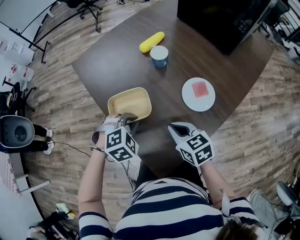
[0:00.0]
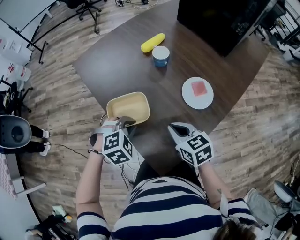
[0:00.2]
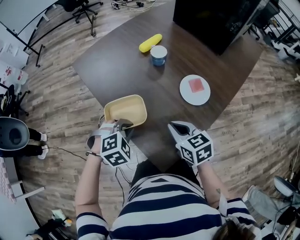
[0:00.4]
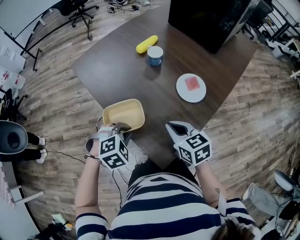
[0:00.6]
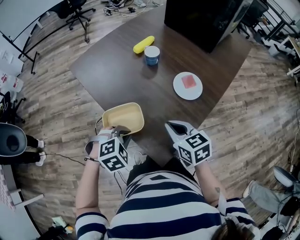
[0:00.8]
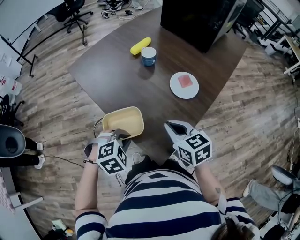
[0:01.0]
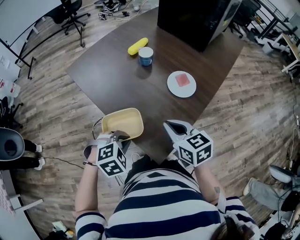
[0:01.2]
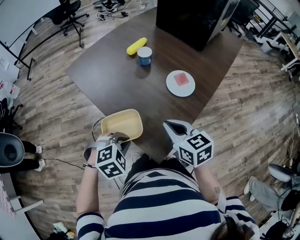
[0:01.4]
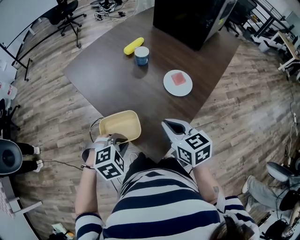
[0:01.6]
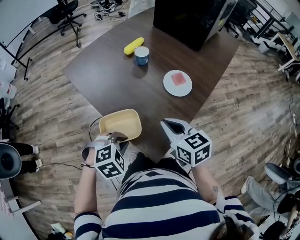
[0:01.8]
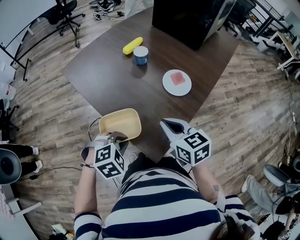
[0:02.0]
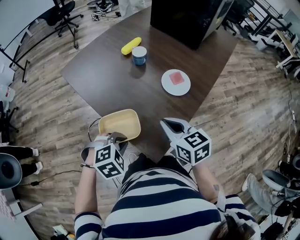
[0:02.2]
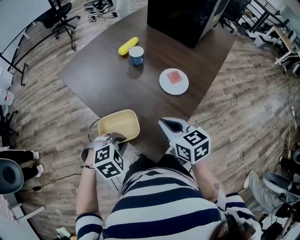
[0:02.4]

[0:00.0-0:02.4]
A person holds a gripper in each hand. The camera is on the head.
0:00.0 to 0:01.2: The right gripper heads backward and upward, covering roughly 15 cm. The left gripper heads backward, covering some 15 cm.
0:01.2 to 0:02.4: Both grippers stay put.

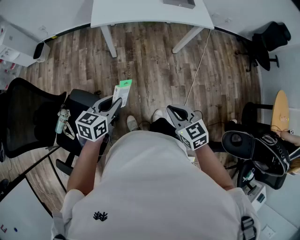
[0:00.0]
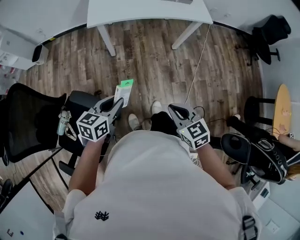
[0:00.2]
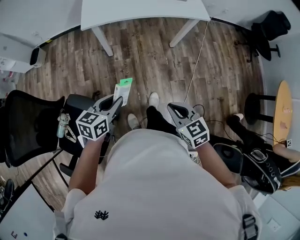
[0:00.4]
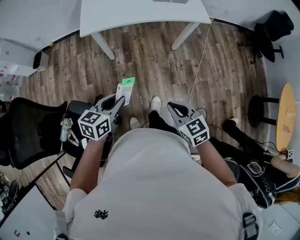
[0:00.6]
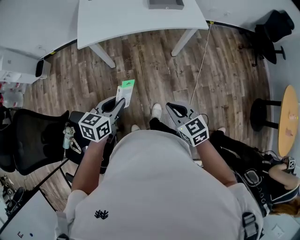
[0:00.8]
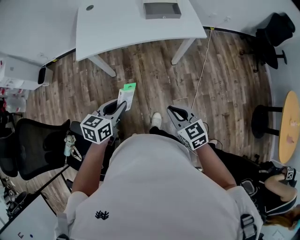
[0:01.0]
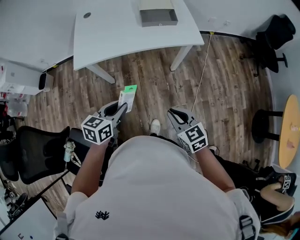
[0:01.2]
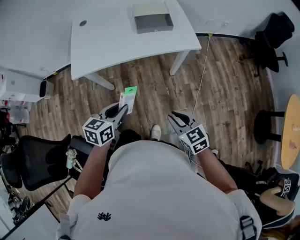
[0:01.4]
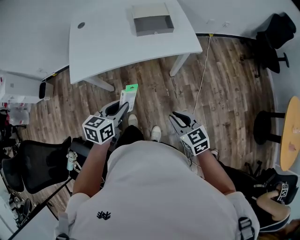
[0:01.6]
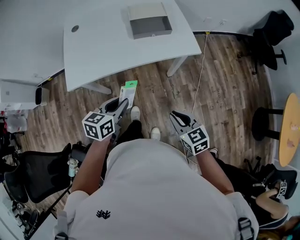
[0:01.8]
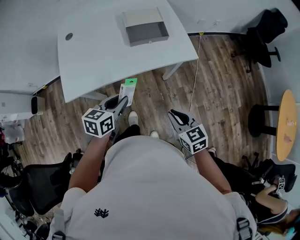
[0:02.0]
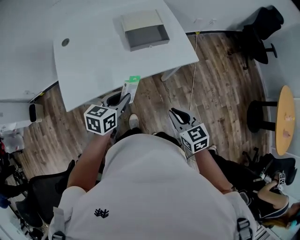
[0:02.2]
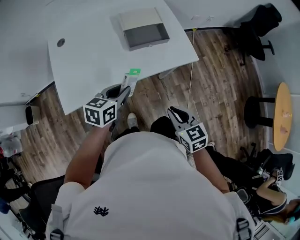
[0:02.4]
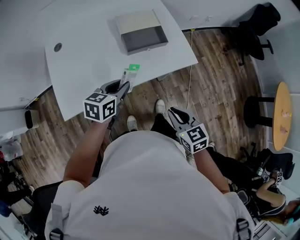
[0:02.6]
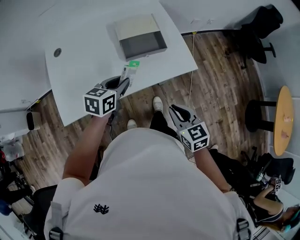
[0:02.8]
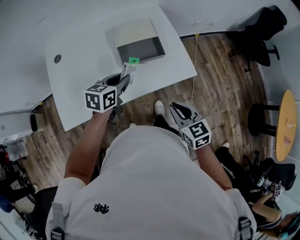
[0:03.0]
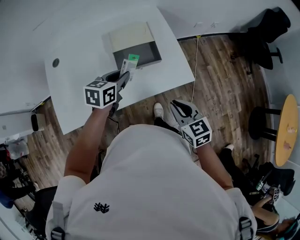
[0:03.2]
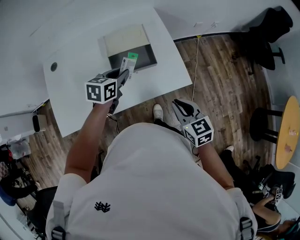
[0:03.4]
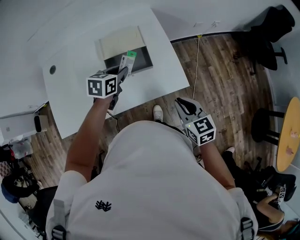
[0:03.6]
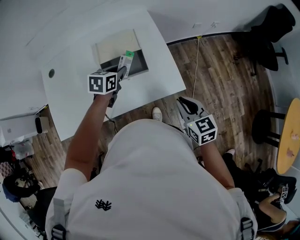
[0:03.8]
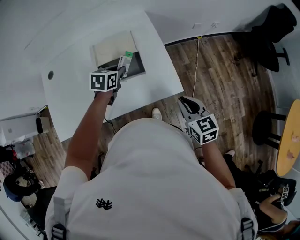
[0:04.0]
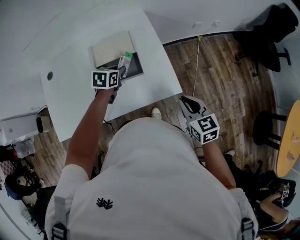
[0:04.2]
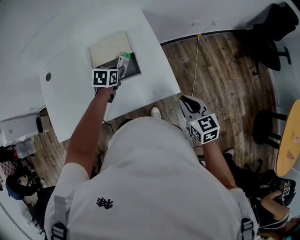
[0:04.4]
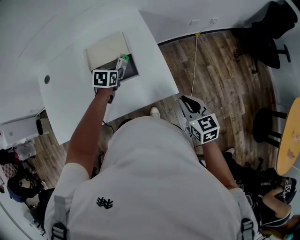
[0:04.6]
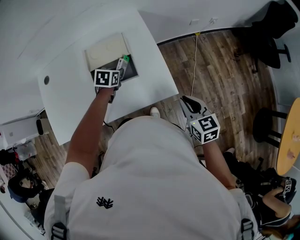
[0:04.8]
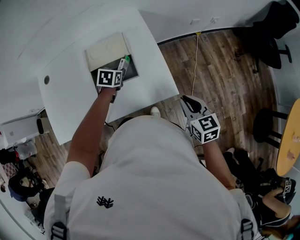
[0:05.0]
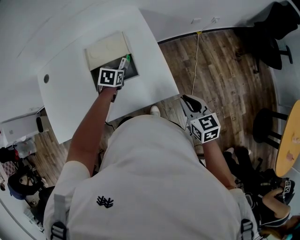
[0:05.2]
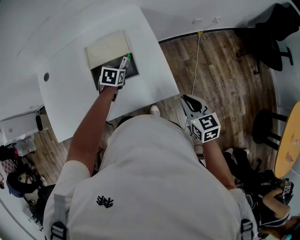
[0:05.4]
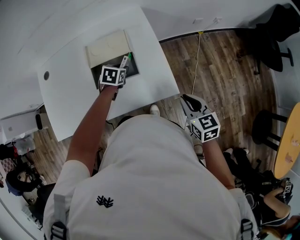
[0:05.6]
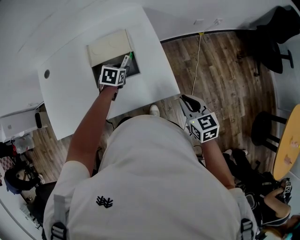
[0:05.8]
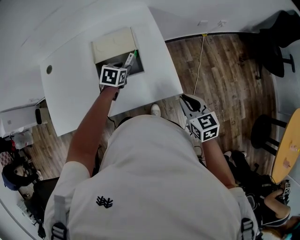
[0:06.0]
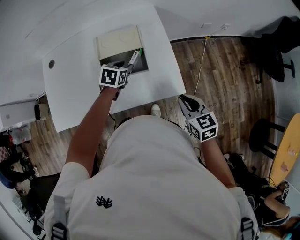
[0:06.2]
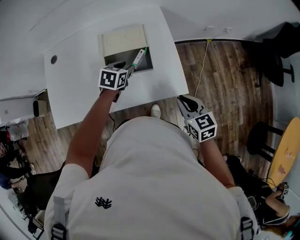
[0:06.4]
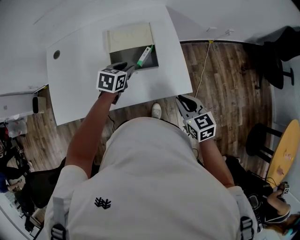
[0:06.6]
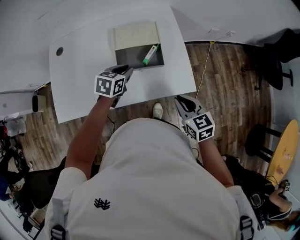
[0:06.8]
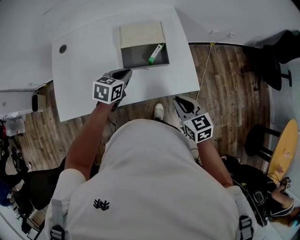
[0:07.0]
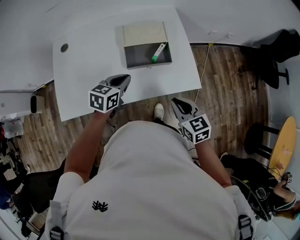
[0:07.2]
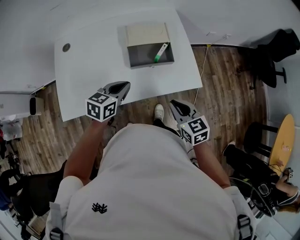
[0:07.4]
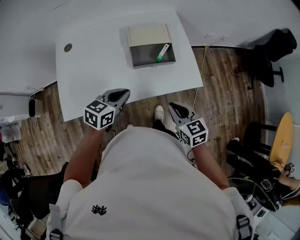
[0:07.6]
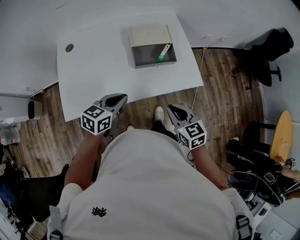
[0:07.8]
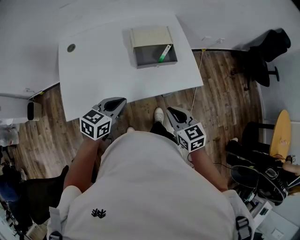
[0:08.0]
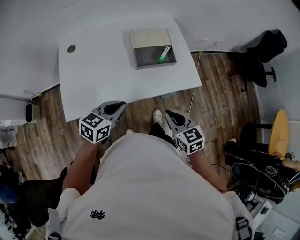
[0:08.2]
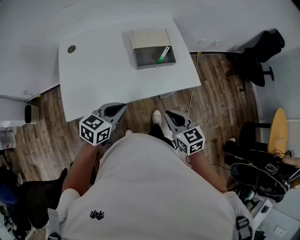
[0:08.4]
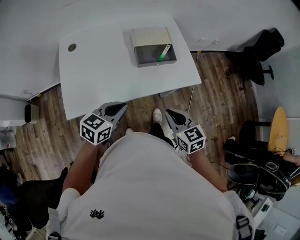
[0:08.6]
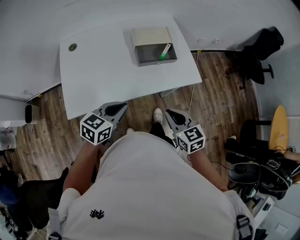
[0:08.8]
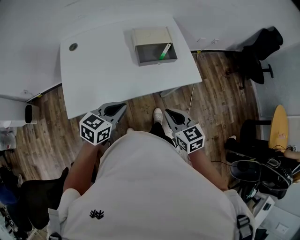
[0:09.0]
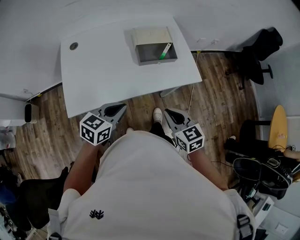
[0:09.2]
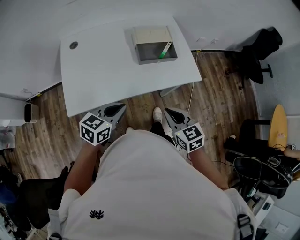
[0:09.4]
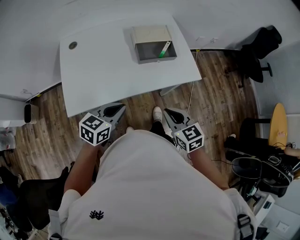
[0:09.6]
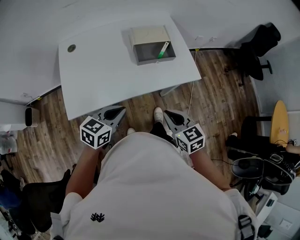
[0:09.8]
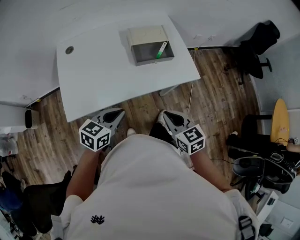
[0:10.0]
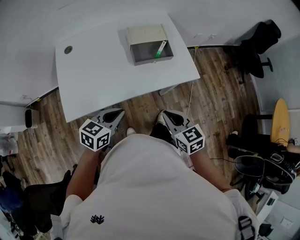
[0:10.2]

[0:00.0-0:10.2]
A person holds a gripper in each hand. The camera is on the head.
0:00.0 to 0:01.4: The two grippers go roughly 25 cm forward and to the right.
0:01.4 to 0:03.0: The grippers both shift forward by approximately 30 cm.
0:03.0 to 0:04.4: The right gripper moves to the right and forward, about 20 cm. Meanwhile the left gripper moves forward, downward and to the right, about 20 cm, and turns by approximately 20 degrees.
0:04.4 to 0:05.8: The grippers stay close to where they were, moving slightly.
0:05.8 to 0:07.2: The left gripper heads backward, to the left and upward, covering approximately 20 cm, rotates roughly 30 degrees, and closes; the right gripper goes about 20 cm to the left.
0:07.2 to 0:08.8: The left gripper moves backward, approximately 20 cm. Meanwhile the right gripper goes about 15 cm backward and to the left.
0:08.8 to 0:10.2: The grippers make only small movements.

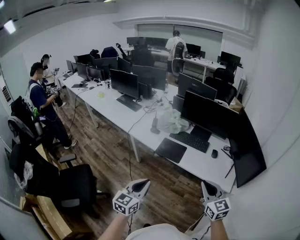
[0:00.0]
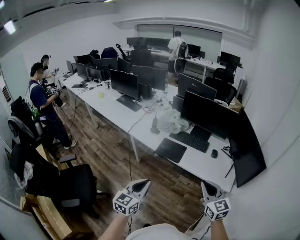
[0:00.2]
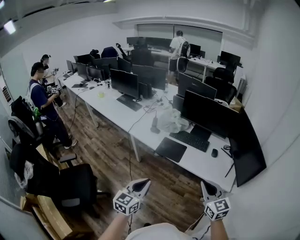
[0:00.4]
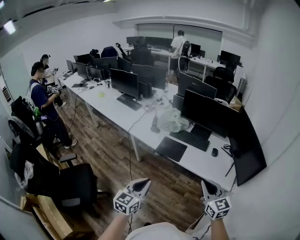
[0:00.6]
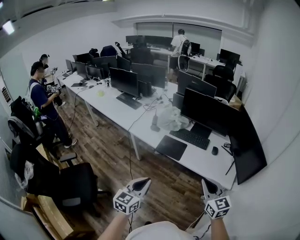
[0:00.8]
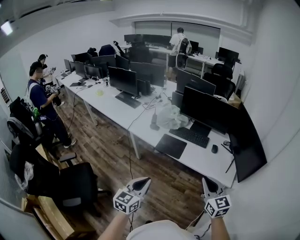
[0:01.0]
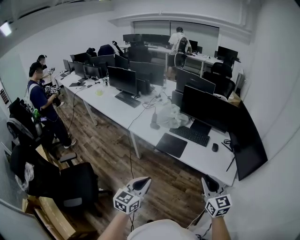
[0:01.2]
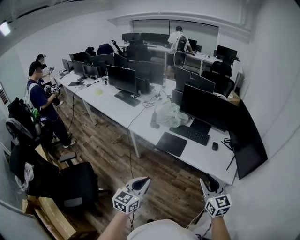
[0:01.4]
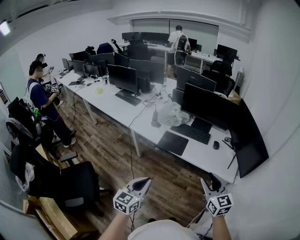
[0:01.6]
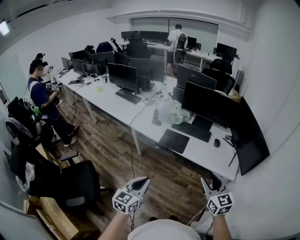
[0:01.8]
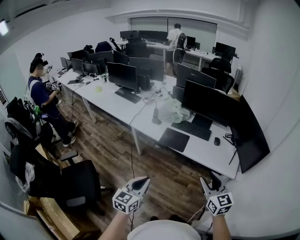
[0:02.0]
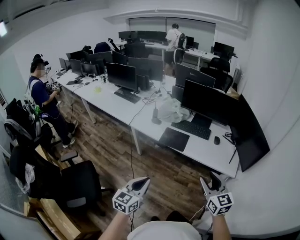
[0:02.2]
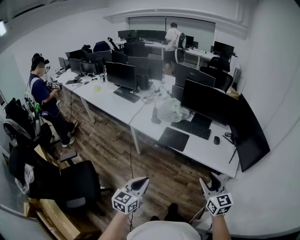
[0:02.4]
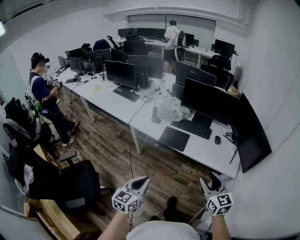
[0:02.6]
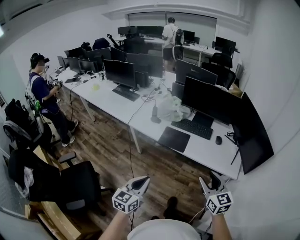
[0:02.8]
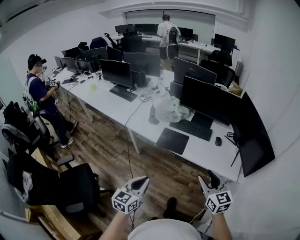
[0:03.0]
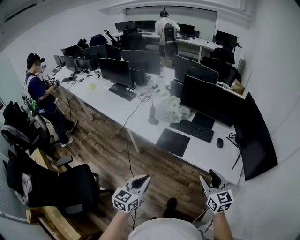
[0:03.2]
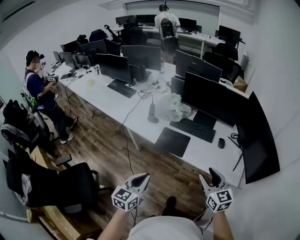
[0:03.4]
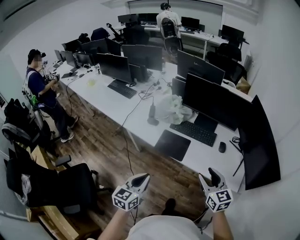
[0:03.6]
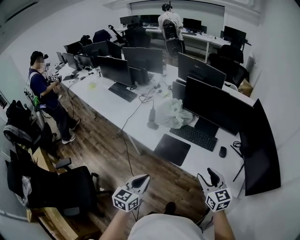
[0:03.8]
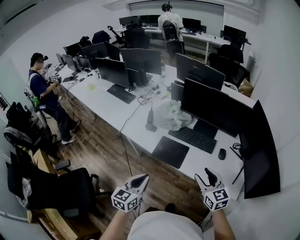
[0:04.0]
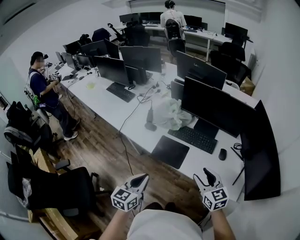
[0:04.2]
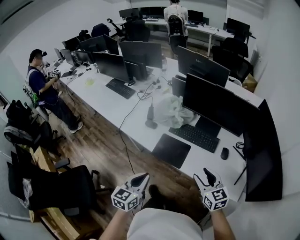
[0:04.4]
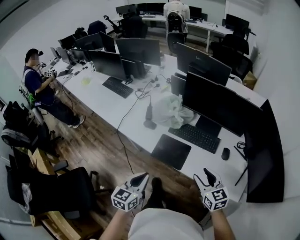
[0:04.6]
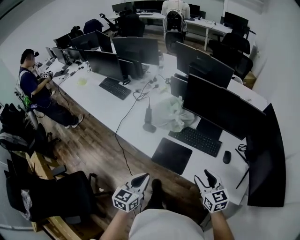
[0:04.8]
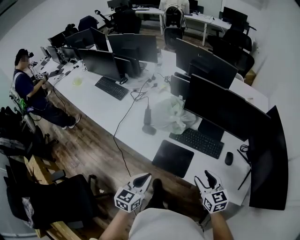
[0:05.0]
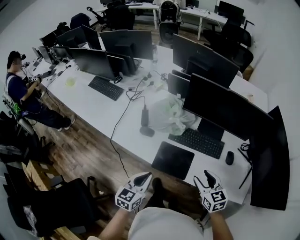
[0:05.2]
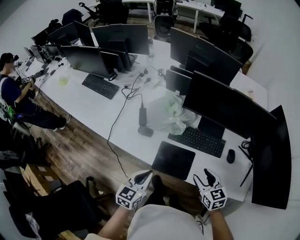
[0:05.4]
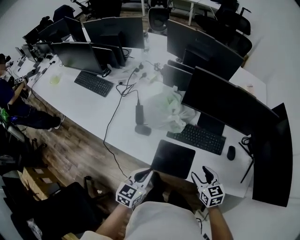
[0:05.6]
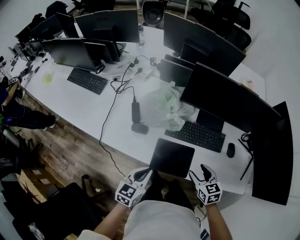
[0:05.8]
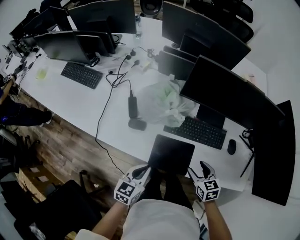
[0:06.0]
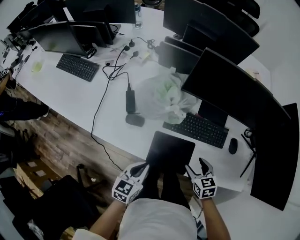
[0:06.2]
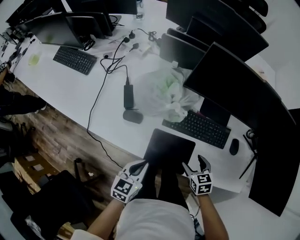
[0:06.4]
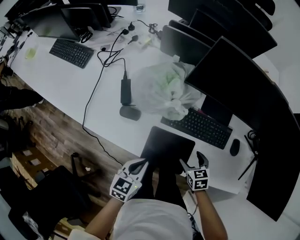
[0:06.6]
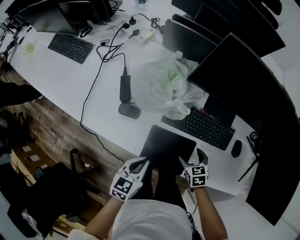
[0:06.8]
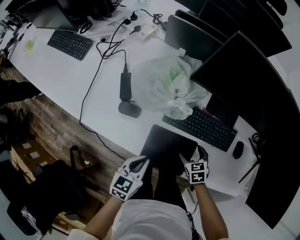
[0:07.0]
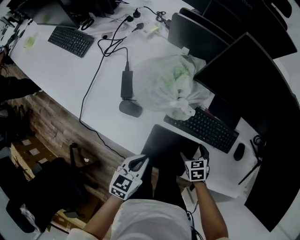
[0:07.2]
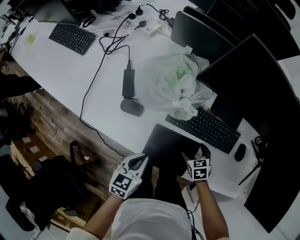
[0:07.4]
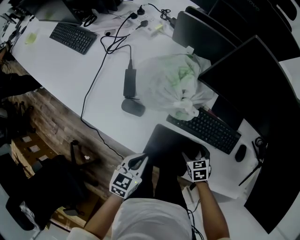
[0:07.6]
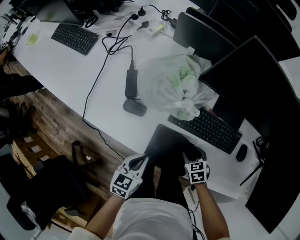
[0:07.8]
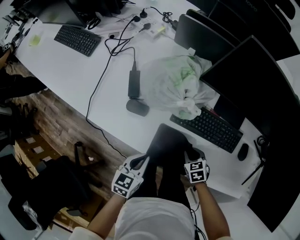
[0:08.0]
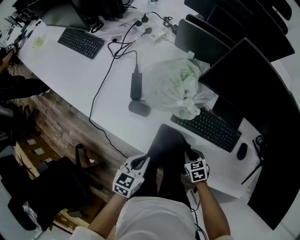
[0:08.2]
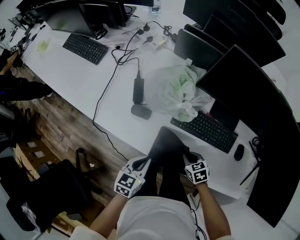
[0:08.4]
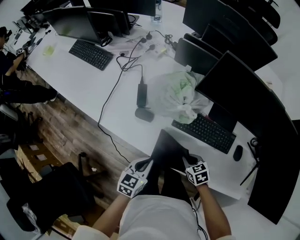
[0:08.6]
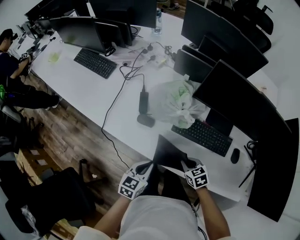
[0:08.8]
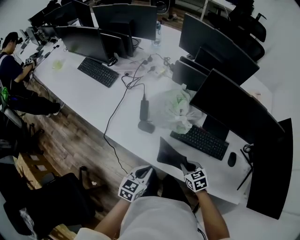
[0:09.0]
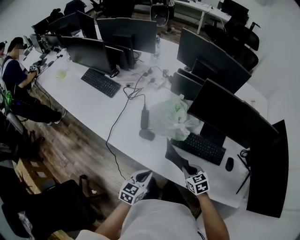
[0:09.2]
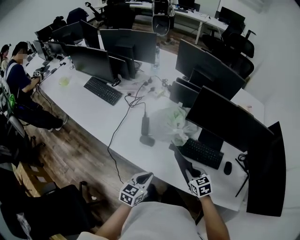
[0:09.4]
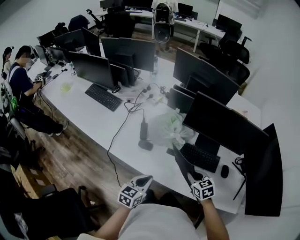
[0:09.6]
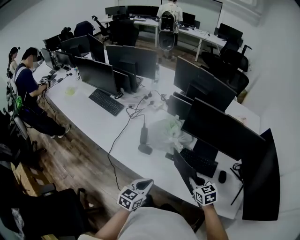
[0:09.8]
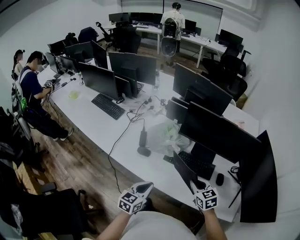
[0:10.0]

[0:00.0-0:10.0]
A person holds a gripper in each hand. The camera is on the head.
0:00.0 to 0:01.4: The grippers stay close to where they were, moving slightly.
0:01.4 to 0:02.8: The left gripper ends up approximately 5 cm from where it was.
0:02.8 to 0:04.2: Both grippers move forward, roughly 25 cm.
0:04.2 to 0:05.8: The right gripper moves forward, downward and to the left, roughly 30 cm, and changes its angle by about 30 degrees, while the left gripper travels forward and downward by roughly 30 cm, and rotates about 20 degrees.
0:05.8 to 0:07.2: The left gripper travels downward by some 15 cm. Meanwhile the right gripper travels downward by some 25 cm, turns by some 30 degrees, and opens its fingers.
0:07.2 to 0:08.6: The left gripper ends up roughly 5 cm from where it was. The right gripper heads upward and to the left, covering roughly 10 cm, and closes up.
0:08.6 to 0:10.0: The right gripper moves upward, approximately 25 cm, and turns by approximately 30 degrees. Meanwhile the left gripper heads upward and backward, covering approximately 20 cm.

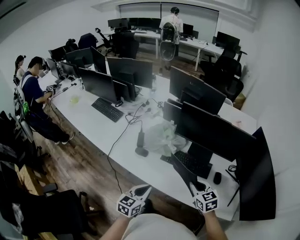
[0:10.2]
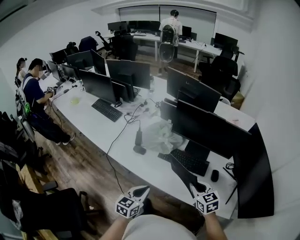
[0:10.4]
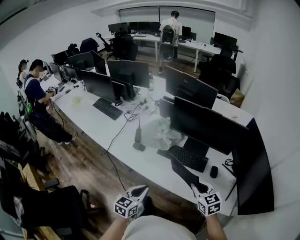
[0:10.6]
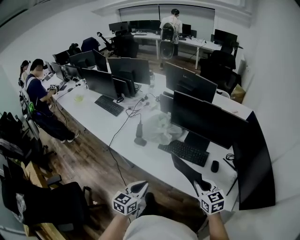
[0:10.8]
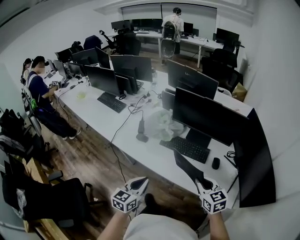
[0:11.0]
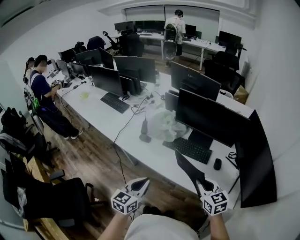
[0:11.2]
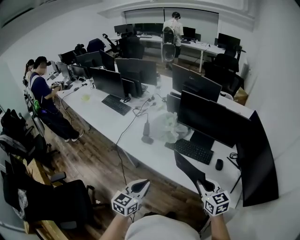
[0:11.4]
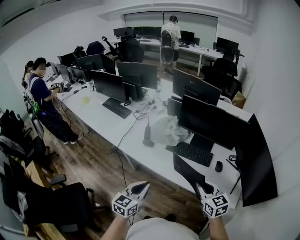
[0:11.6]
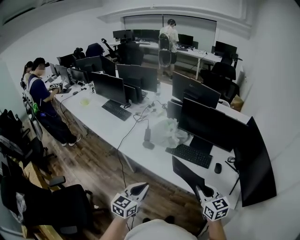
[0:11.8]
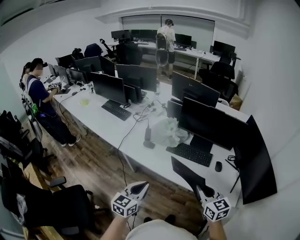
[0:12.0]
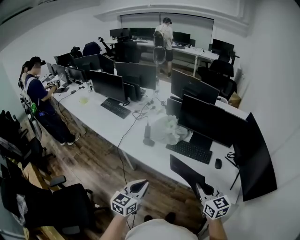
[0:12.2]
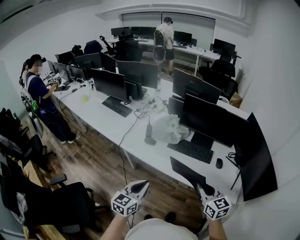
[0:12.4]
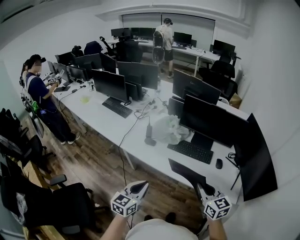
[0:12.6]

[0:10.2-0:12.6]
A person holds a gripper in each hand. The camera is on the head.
0:10.2 to 0:11.4: The grippers both shift backward and upward by approximately 15 cm.
0:11.4 to 0:12.6: The left gripper goes roughly 5 cm to the left. Meanwhile the right gripper shifts roughly 10 cm to the left and backward.
